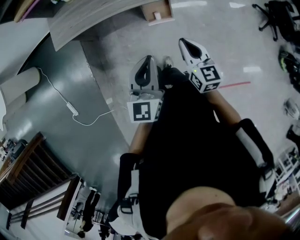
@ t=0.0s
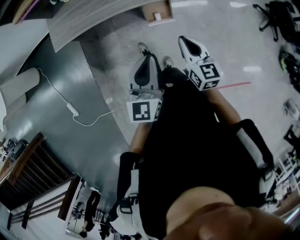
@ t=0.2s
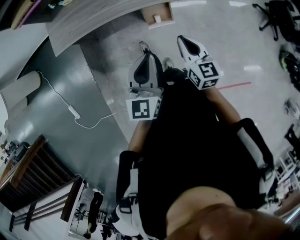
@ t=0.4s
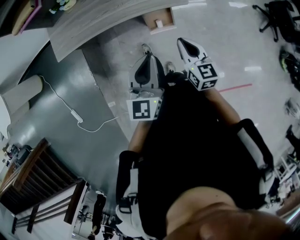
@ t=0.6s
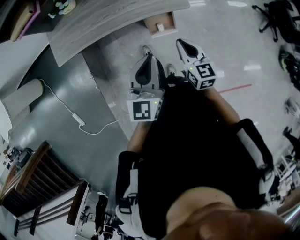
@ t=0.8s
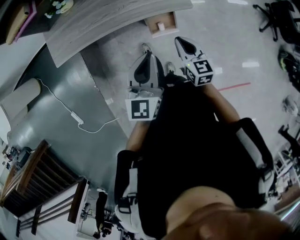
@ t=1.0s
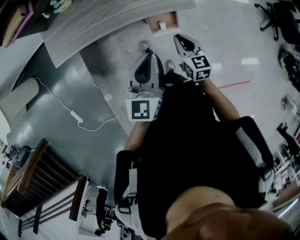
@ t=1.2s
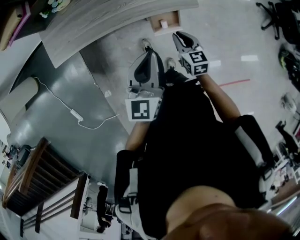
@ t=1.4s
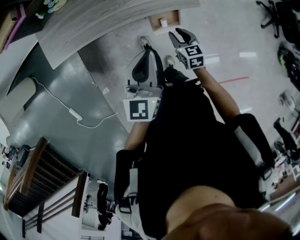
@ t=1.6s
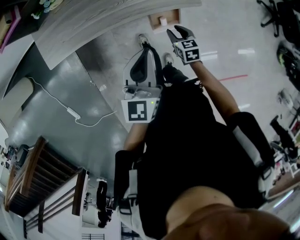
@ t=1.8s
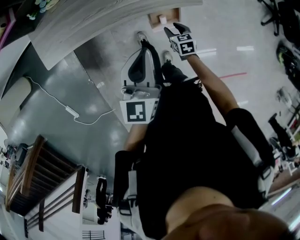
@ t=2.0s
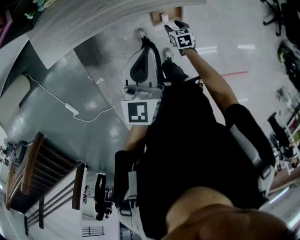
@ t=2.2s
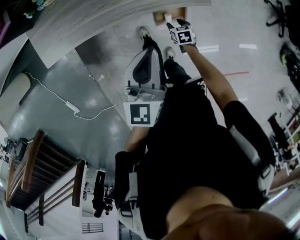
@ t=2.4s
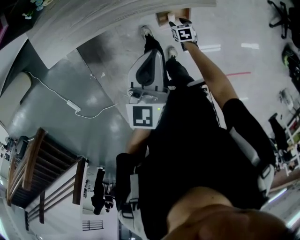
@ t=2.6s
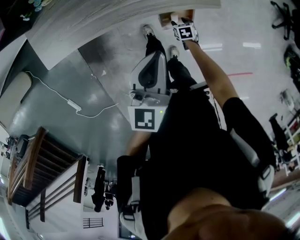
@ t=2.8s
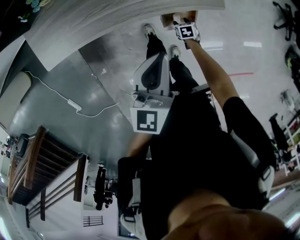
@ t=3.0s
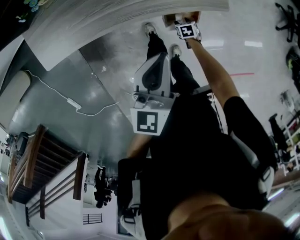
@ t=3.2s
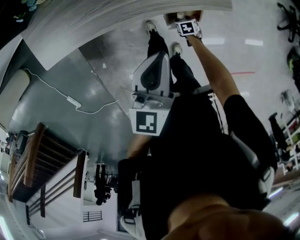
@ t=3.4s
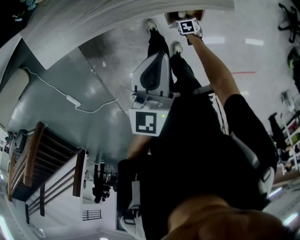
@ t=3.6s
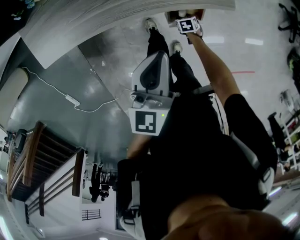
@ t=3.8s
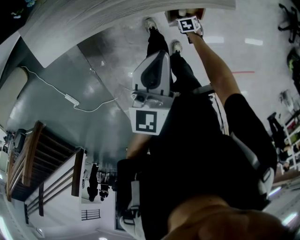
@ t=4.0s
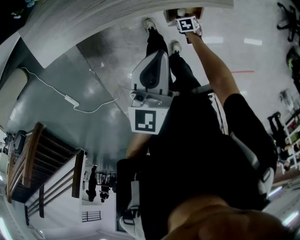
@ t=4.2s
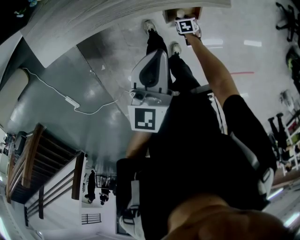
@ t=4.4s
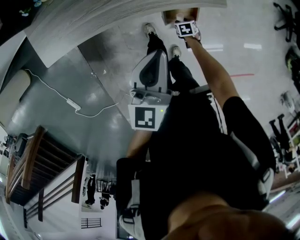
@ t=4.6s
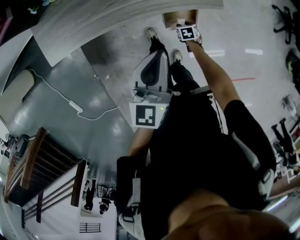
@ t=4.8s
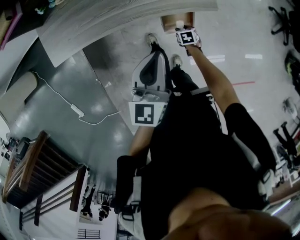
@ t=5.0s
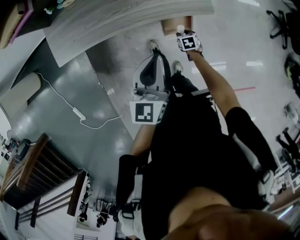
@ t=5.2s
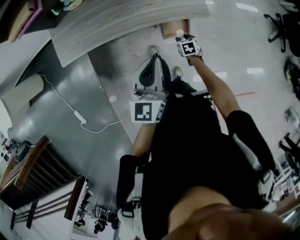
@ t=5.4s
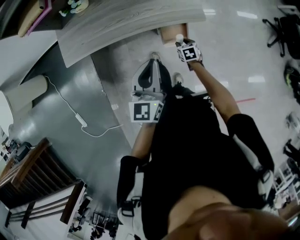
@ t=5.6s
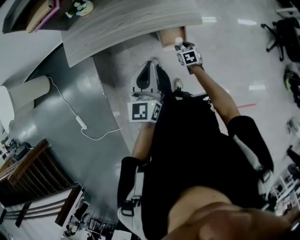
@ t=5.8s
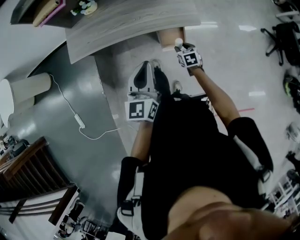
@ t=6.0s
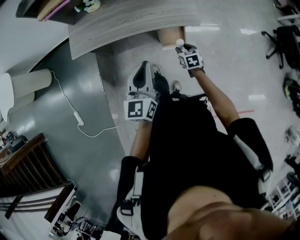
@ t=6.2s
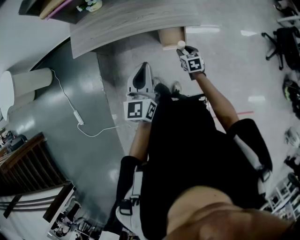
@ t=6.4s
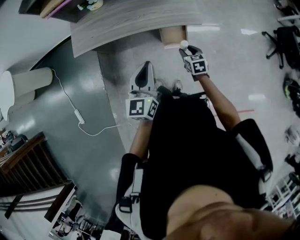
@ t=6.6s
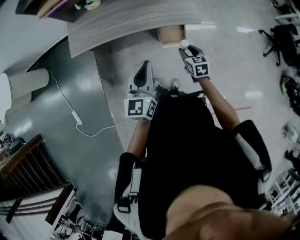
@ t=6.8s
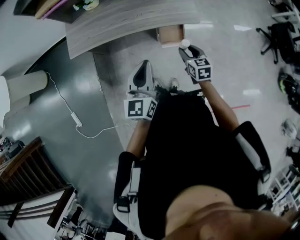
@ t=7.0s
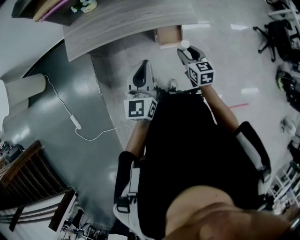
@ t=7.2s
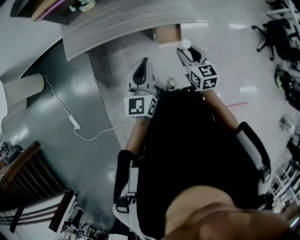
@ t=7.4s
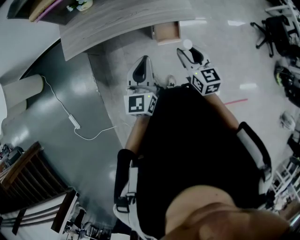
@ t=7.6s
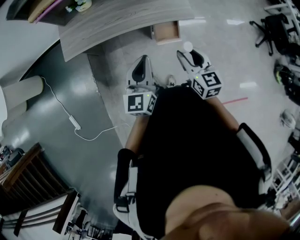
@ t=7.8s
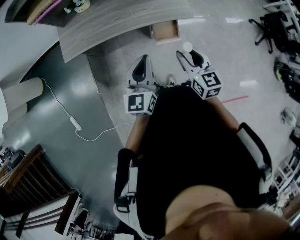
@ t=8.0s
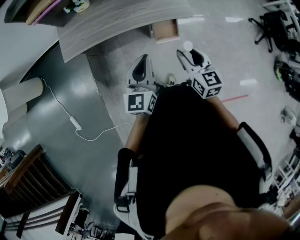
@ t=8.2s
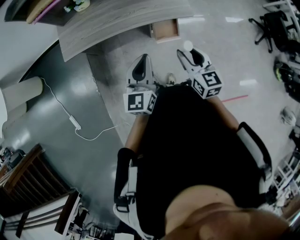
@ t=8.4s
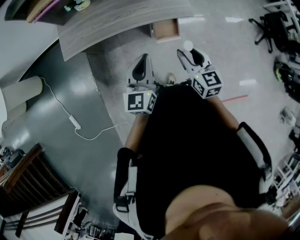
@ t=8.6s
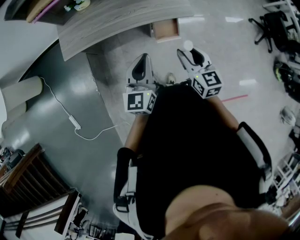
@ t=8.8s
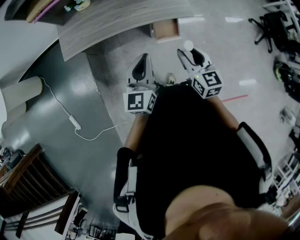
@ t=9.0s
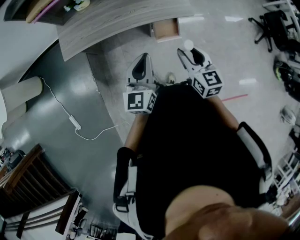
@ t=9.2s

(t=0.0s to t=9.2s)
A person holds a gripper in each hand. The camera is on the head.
t=0.0s - t=1.6s: The right gripper shifts some 25 cm downward and forward, changes its angle by roughly 20 degrees, and opens; the left gripper heads forward, covering some 20 cm.
t=1.6s - t=3.0s: The left gripper shifts some 5 cm downward, while the right gripper heads downward, covering approximately 30 cm, points its fingers some 30 degrees further downward, and opens up.
t=3.0s - t=4.6s: The grippers make only small movements.
t=4.6s - t=6.2s: The left gripper moves about 20 cm; the right gripper heads upward, covering some 30 cm, and angles its fingers upward, by some 30 degrees.
t=6.2s - t=7.6s: The right gripper heads upward, covering roughly 25 cm, and rotates some 30 degrees.
t=7.6s - t=9.2s: The grippers stay close to where they were, moving slightly.

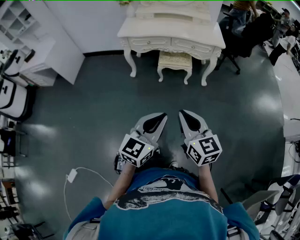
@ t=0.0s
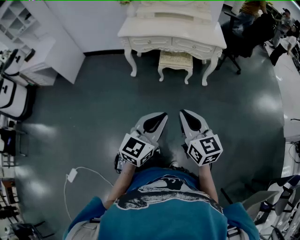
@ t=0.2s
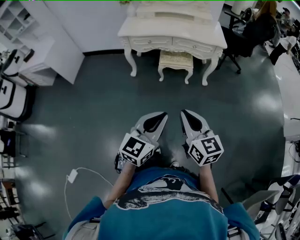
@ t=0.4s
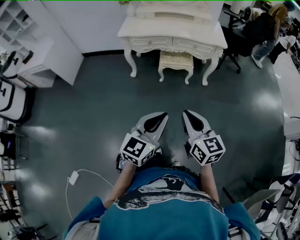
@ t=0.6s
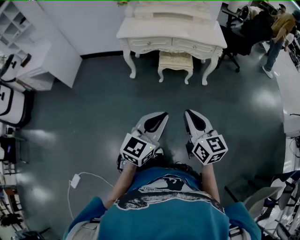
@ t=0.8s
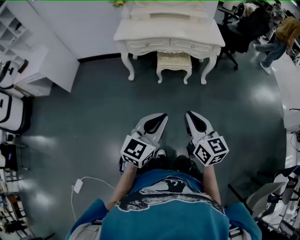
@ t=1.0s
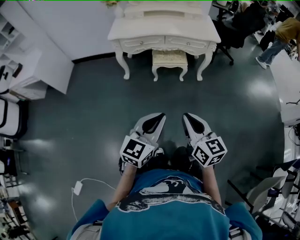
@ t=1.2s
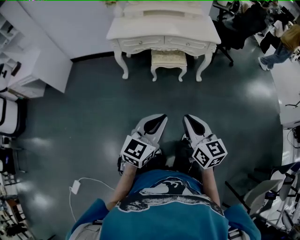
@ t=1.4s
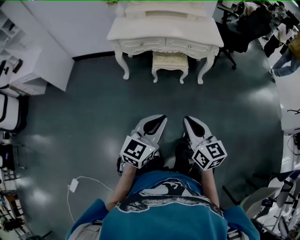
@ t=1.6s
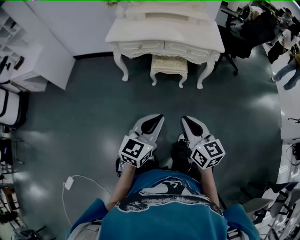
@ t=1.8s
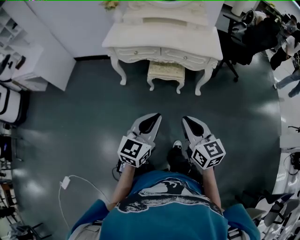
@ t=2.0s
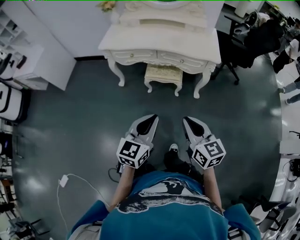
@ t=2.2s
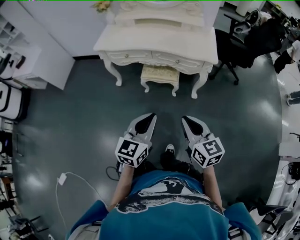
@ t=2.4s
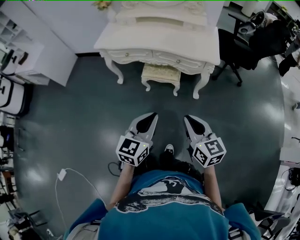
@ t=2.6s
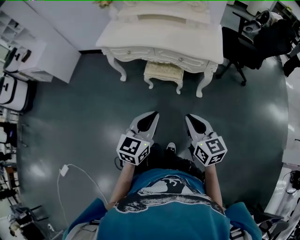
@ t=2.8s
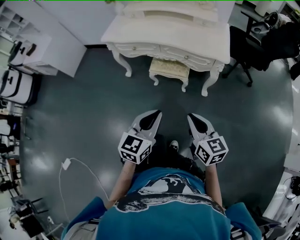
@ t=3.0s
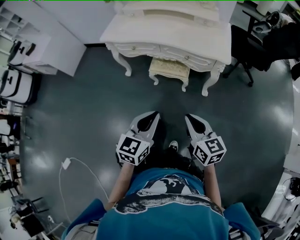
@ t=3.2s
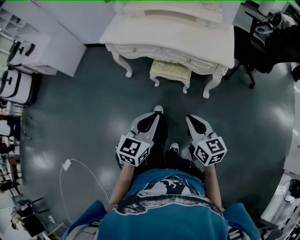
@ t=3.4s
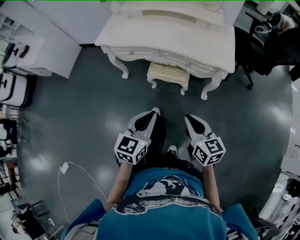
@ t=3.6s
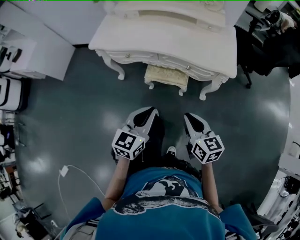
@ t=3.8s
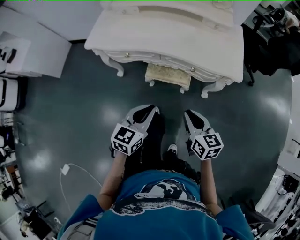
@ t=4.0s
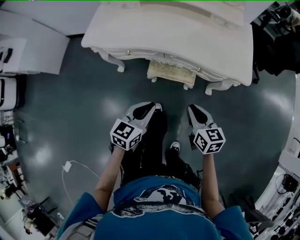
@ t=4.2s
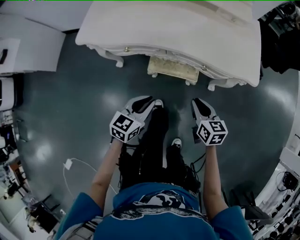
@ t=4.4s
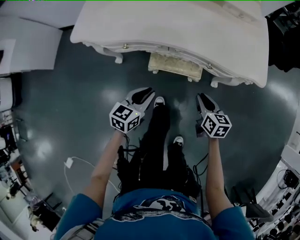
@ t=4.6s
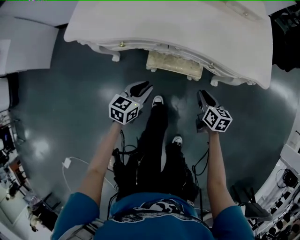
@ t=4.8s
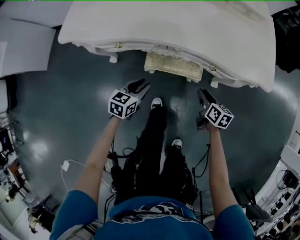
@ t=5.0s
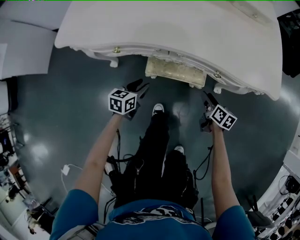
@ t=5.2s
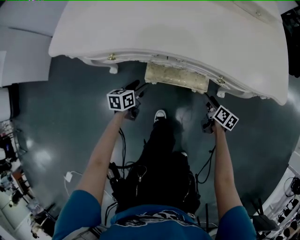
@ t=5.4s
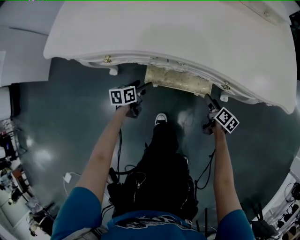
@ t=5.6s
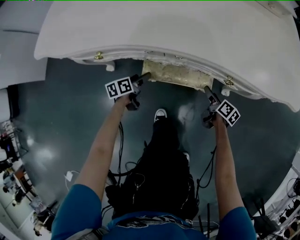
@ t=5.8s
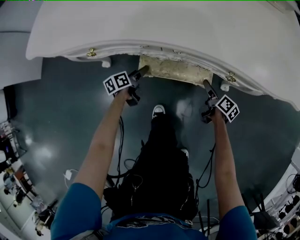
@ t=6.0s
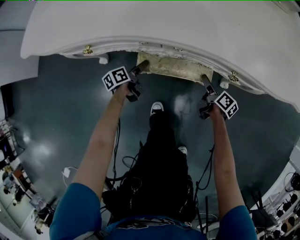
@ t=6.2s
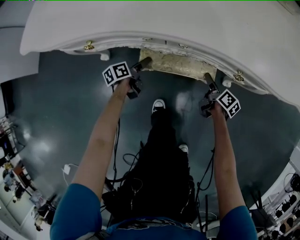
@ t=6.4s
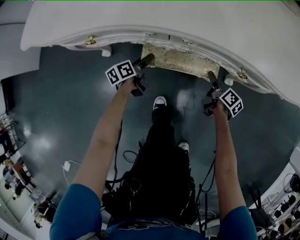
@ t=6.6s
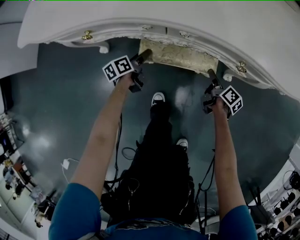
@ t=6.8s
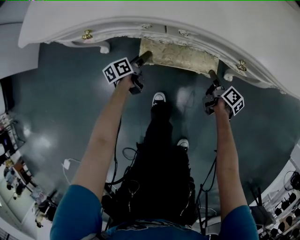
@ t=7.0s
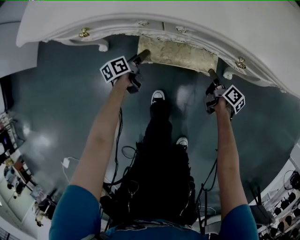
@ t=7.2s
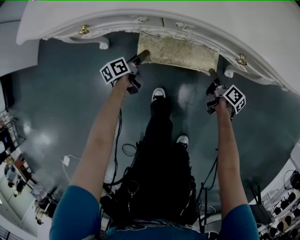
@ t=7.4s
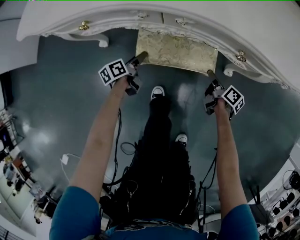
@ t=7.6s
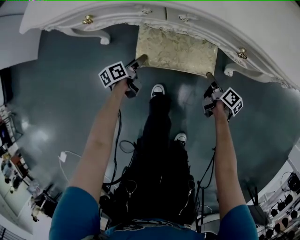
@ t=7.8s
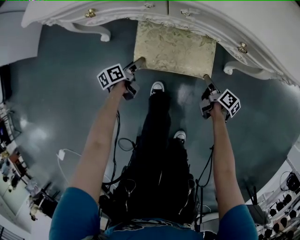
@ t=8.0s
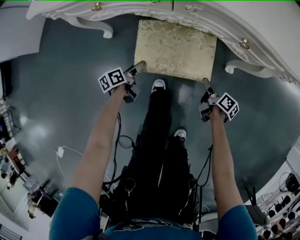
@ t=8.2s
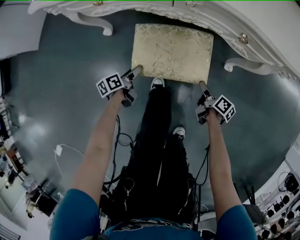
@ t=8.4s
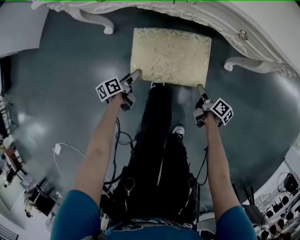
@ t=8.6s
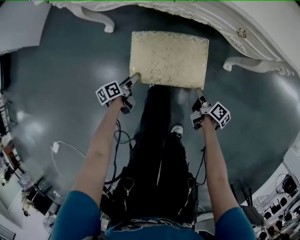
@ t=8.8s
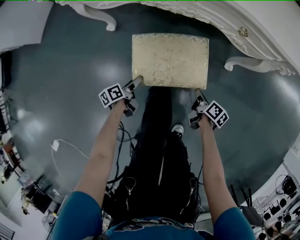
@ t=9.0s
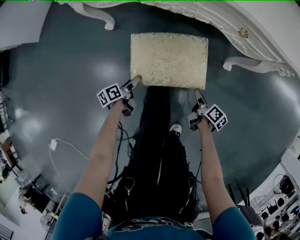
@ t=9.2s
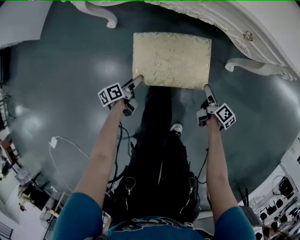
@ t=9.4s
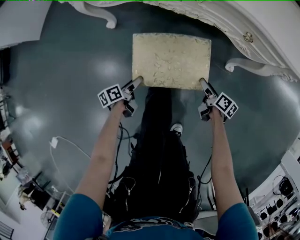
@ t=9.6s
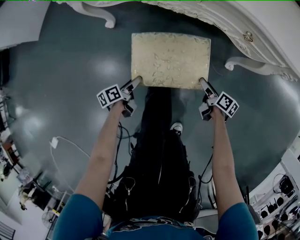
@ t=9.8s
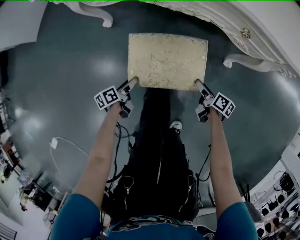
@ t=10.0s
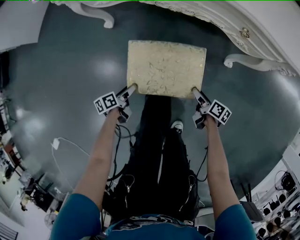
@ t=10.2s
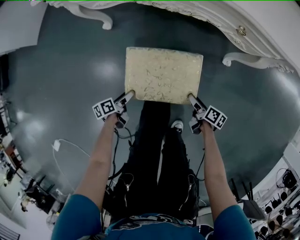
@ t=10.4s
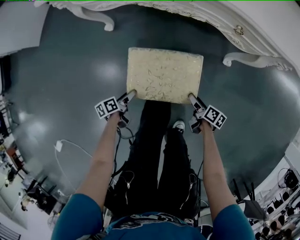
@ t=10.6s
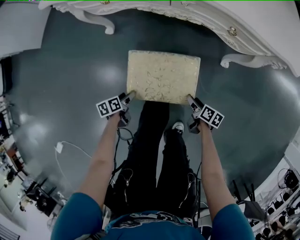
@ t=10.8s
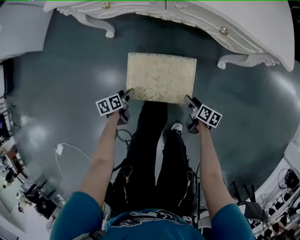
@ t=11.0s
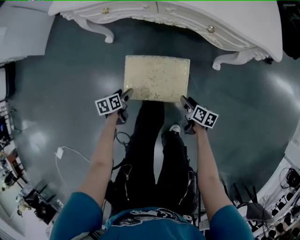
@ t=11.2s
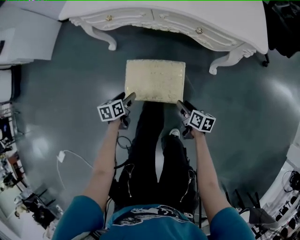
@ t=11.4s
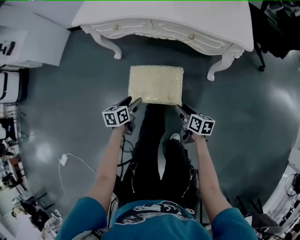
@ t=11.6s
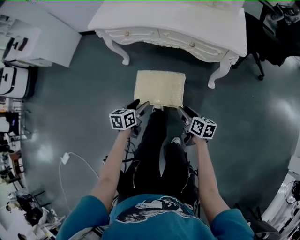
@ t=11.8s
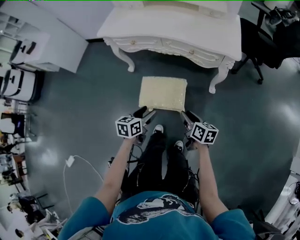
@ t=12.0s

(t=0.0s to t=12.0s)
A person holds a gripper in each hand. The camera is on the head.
t=0.0s - t=1.6s: The two grippers go about 5 cm forward.
t=1.6s - t=3.0s: The two grippers go approximately 30 cm to the right and forward. The left gripper rotates roughly 20 degrees.
t=3.0s - t=4.4s: The two grippers go some 35 cm forward and downward. The right gripper turns by about 20 degrees.
t=4.4s - t=6.0s: The grippers both shift downward and forward by roughly 40 cm. The right gripper twists some 50 degrees clockwise, seen from behind, and opens up. Meanwhile the left gripper rolls counterclockwise, seen from behind, by some 50 degrees, and opens its fingers.
t=6.0s - t=7.6s: The right gripper closes up.
t=7.6s - t=9.0s: The grippers both shift backward by approximately 20 cm. The right gripper closes its fingers.
t=9.0s - t=10.4s: The left gripper travels backward by approximately 10 cm, while the right gripper moves about 5 cm, and opens its fingers.
t=10.4s - t=12.0s: The left gripper heads upward and to the right, covering approximately 40 cm, and twists roughly 40 degrees clockwise, seen from behind. Meanwhile the right gripper travels upward by some 35 cm, turns by roughly 30 degrees, and closes.

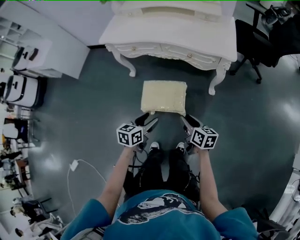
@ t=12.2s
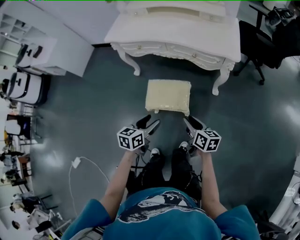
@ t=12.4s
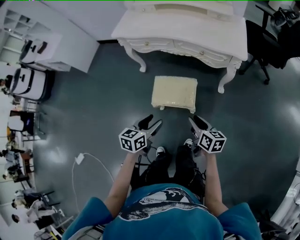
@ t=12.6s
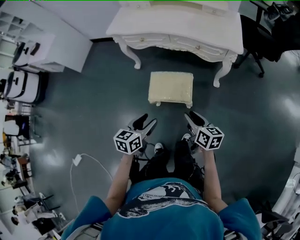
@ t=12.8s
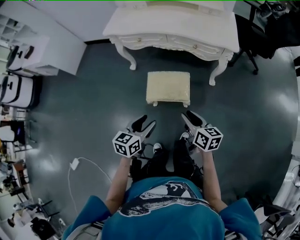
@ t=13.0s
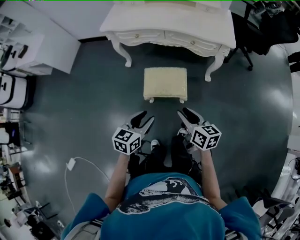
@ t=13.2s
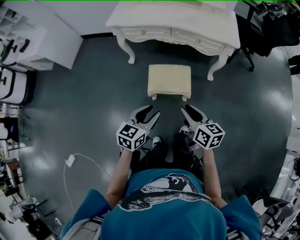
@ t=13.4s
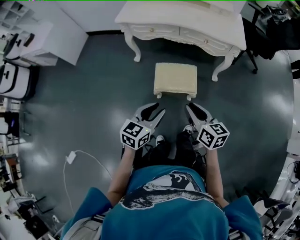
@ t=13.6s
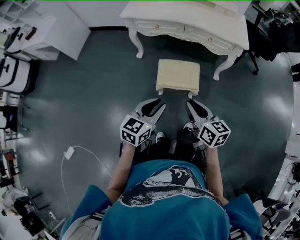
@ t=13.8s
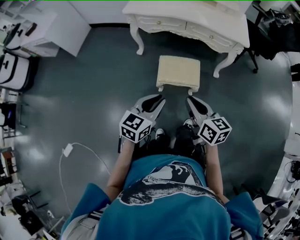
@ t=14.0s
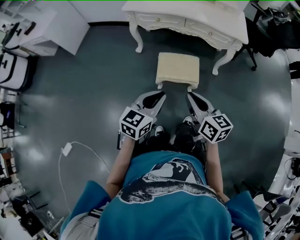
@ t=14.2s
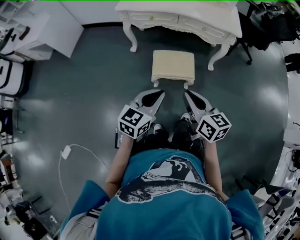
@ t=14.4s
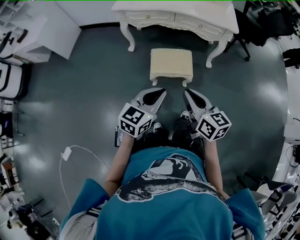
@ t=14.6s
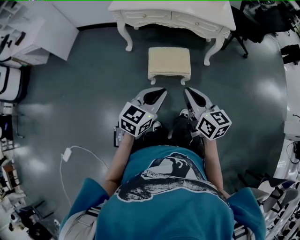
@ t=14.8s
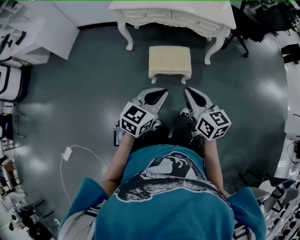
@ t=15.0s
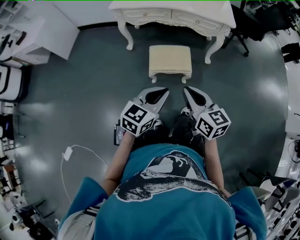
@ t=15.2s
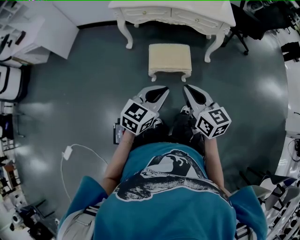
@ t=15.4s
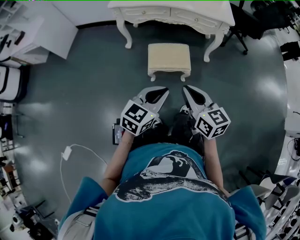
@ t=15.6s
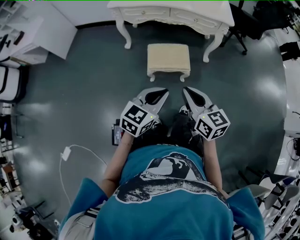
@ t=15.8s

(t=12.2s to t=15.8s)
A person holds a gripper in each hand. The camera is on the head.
t=12.2s - t=14.0s: The left gripper is displaced backward, upward and to the left by roughly 25 cm, changes its angle by approximately 20 degrees, and closes its fingers. Meanwhile the right gripper heads to the left, upward and backward, covering roughly 30 cm.
t=14.0s - t=15.8s: The left gripper travels backward and to the right by approximately 10 cm; the right gripper moves backward, approximately 10 cm.
